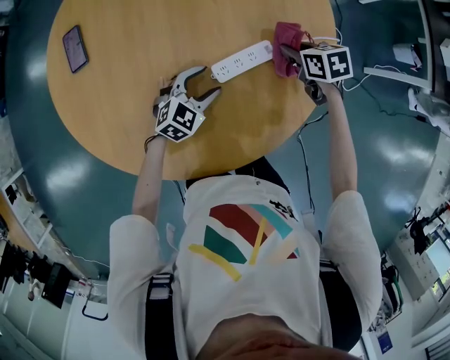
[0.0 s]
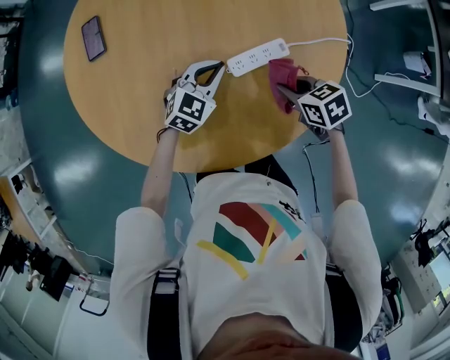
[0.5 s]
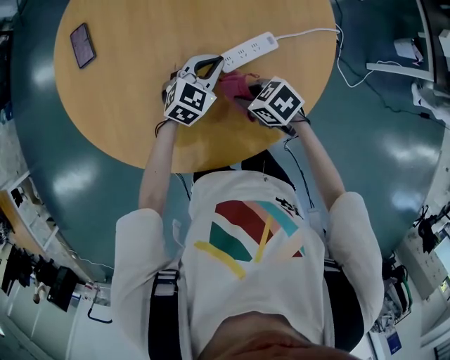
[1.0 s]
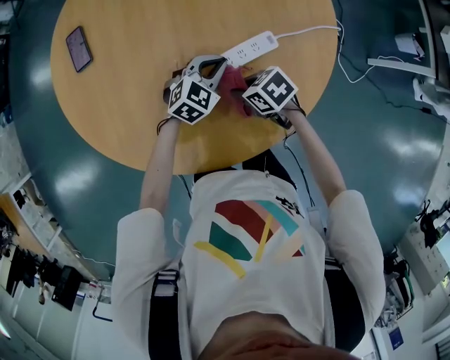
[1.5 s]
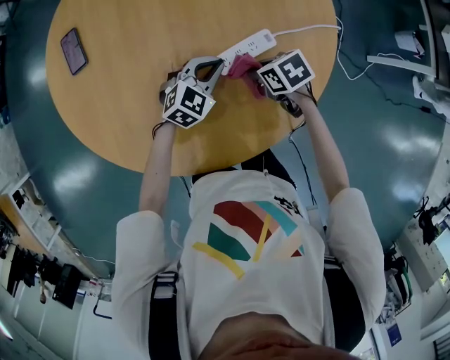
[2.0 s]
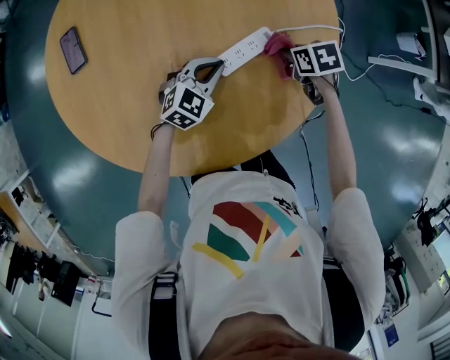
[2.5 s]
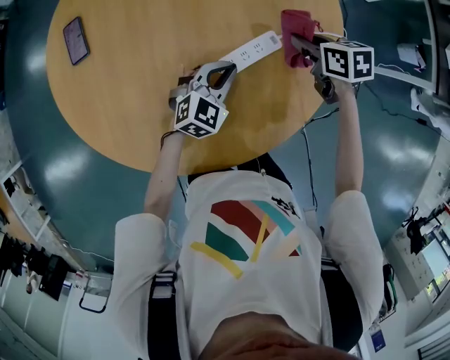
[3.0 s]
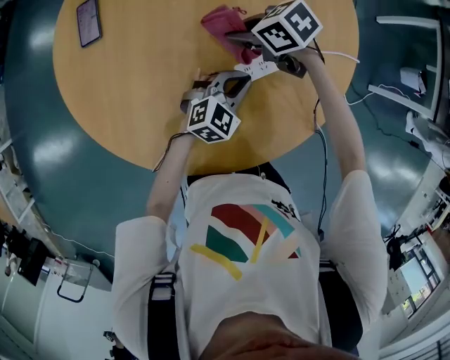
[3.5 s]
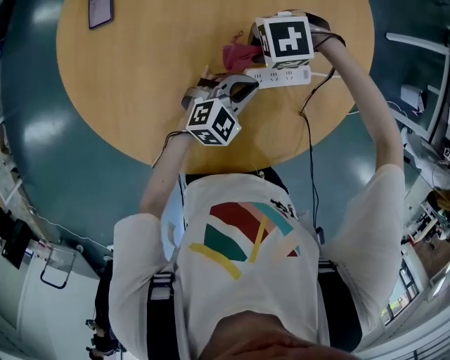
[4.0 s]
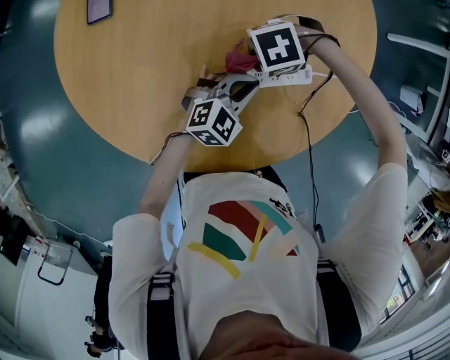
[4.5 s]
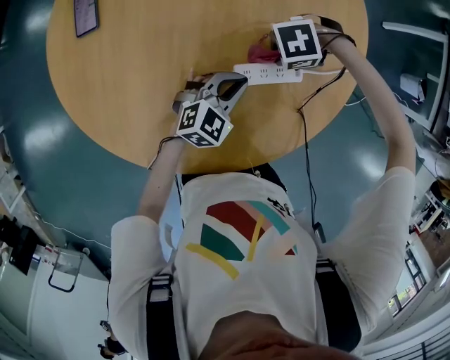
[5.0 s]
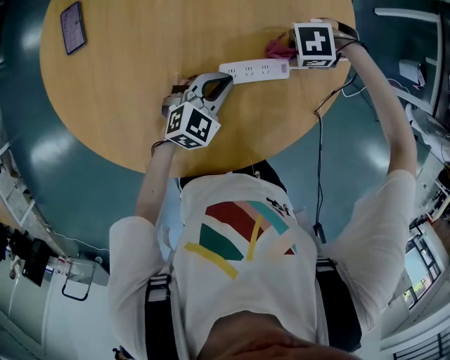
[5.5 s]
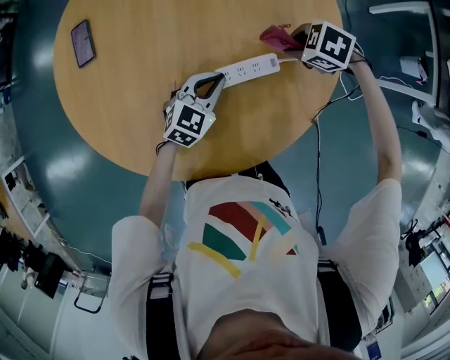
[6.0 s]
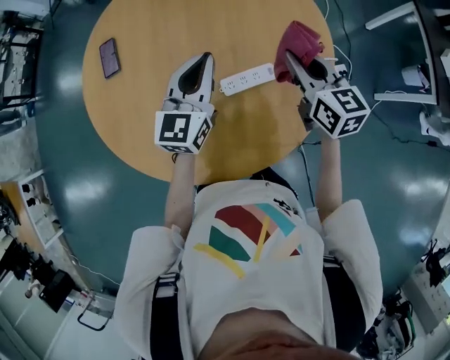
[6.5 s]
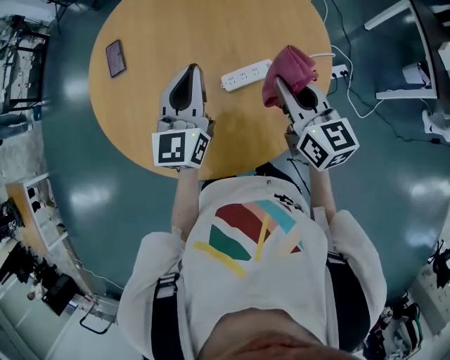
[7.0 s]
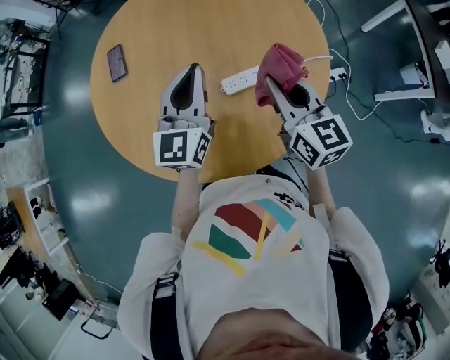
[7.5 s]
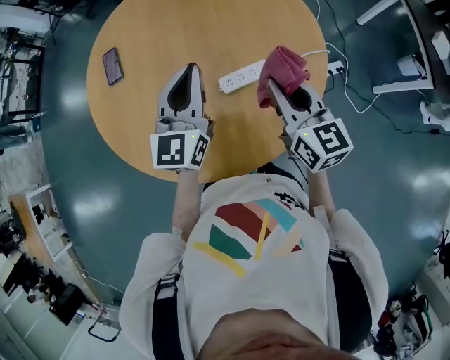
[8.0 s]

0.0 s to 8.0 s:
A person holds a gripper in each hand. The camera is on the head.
0.0 to 2.0 s: The left gripper closes its fingers.
2.0 to 4.0 s: The right gripper moves about 15 cm, and rotates around the line of its fingers by about 80 degrees, counterclockwise from behind.
4.0 to 6.0 s: The right gripper shifts by approximately 20 cm, and swivels some 40 degrees.
6.0 to 8.0 s: The two grippers go approximately 25 cm upward. The right gripper angles its fingers upward, by some 60 degrees, while the left gripper tips its fingers upward by about 30 degrees.

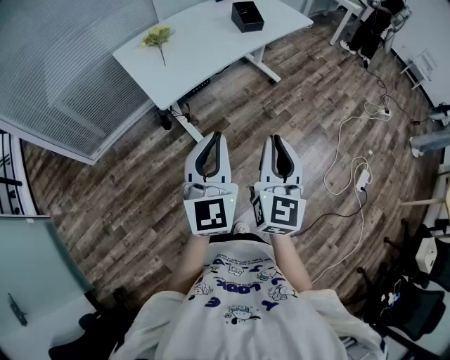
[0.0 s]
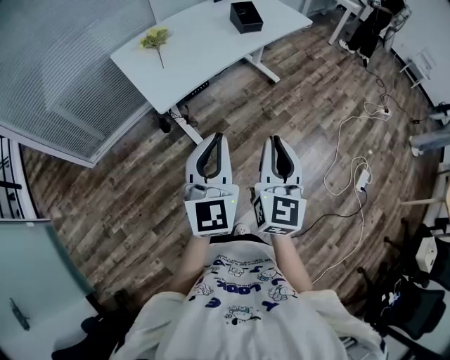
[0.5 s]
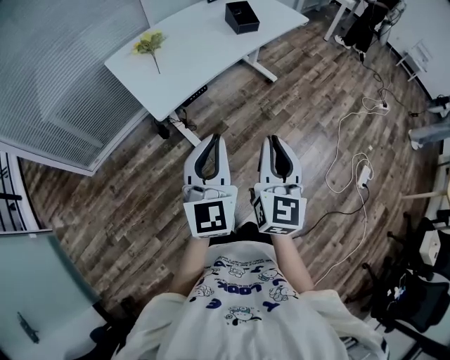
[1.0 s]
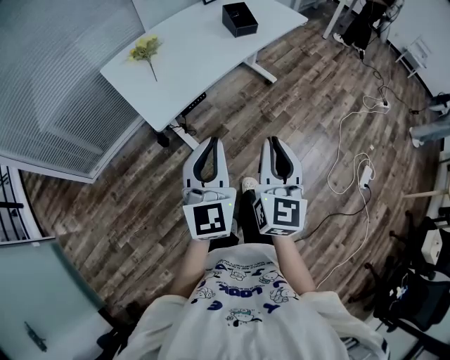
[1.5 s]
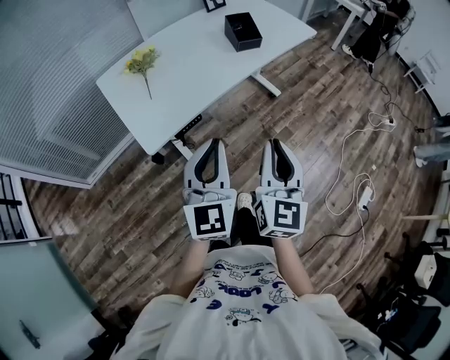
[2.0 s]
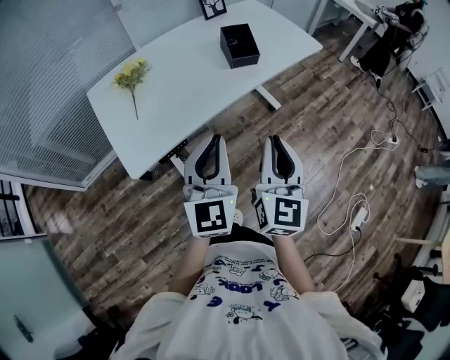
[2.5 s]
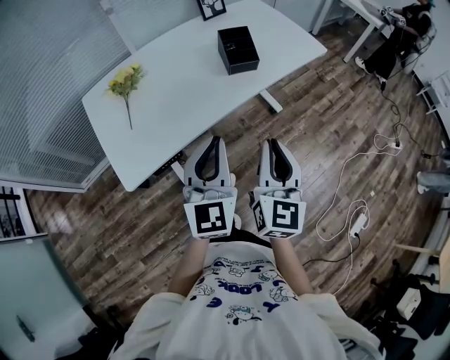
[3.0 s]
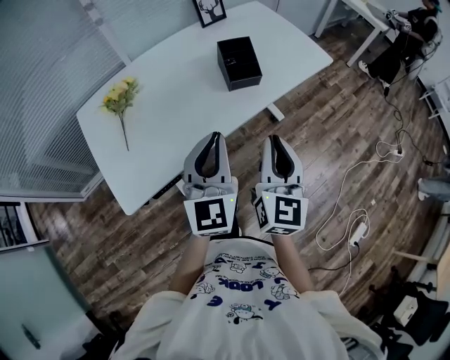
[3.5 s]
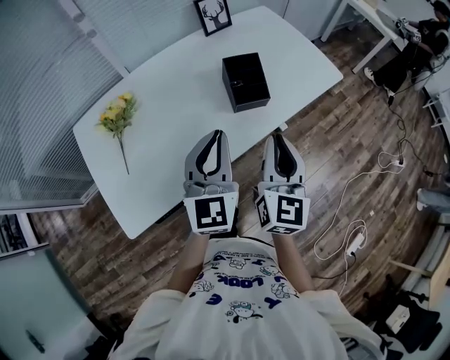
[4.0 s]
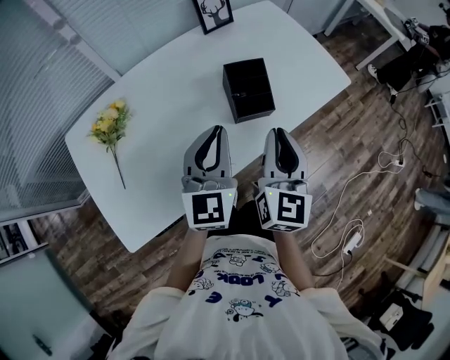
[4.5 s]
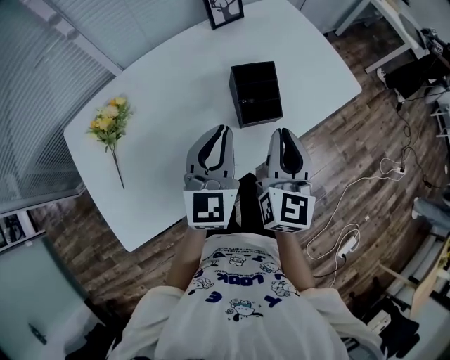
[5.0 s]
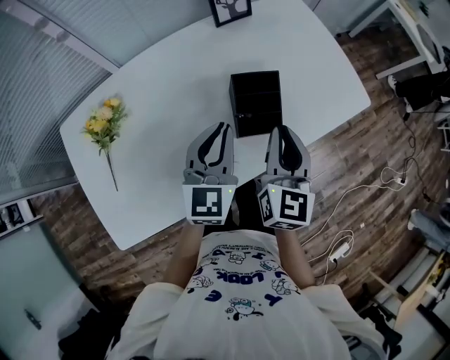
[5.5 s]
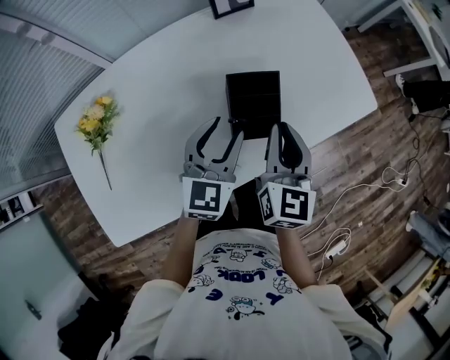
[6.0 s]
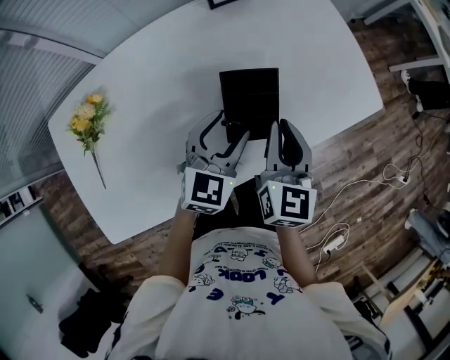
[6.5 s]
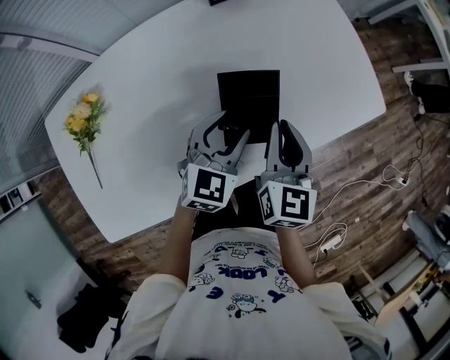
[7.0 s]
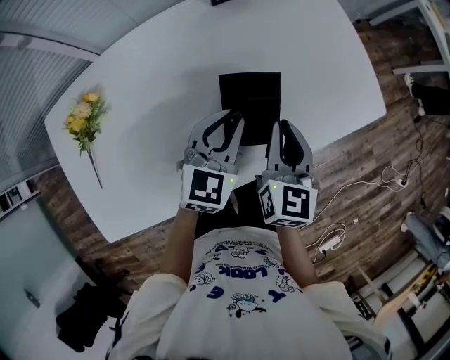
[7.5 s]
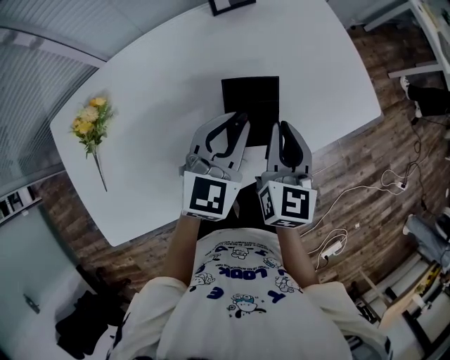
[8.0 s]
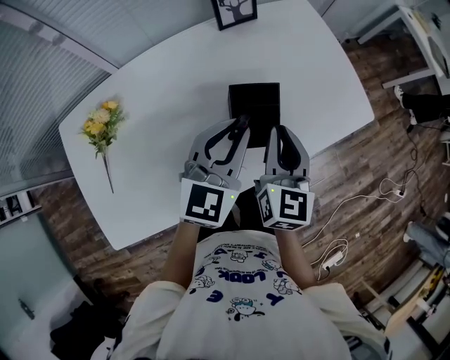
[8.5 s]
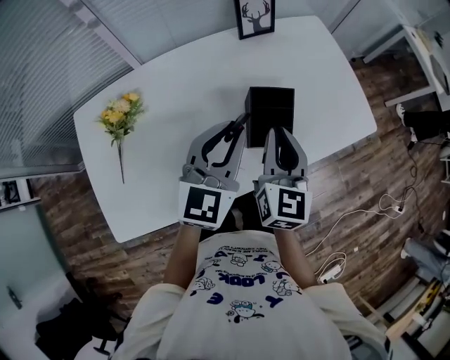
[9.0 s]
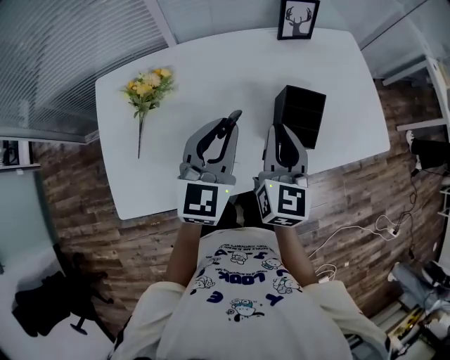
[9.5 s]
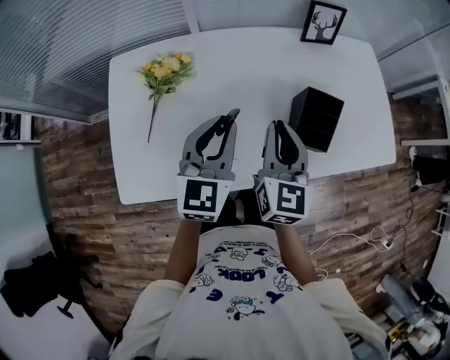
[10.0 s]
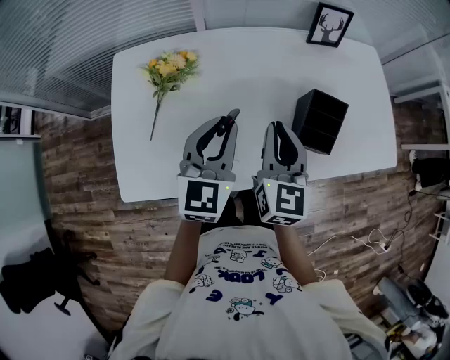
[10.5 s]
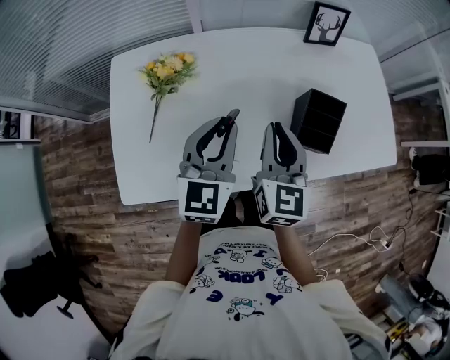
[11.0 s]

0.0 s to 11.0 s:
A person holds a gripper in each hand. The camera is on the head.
0.0 to 2.0 s: The two grippers go about 20 cm forward.
2.0 to 3.5 s: Both grippers travel together forward, roughly 30 cm.
3.5 to 5.5 s: The two grippers go about 30 cm forward.
5.5 to 7.5 s: The left gripper is displaced forward, downward and to the right by roughly 10 cm, and opens, then closes again, while the right gripper shifts about 10 cm forward and downward.
7.5 to 9.0 s: The left gripper travels upward, backward and to the left by approximately 15 cm; the right gripper is displaced upward, to the left and backward by approximately 15 cm.
9.0 to 11.0 s: Both grippers move to the left, approximately 15 cm. The left gripper changes its angle by some 20 degrees.

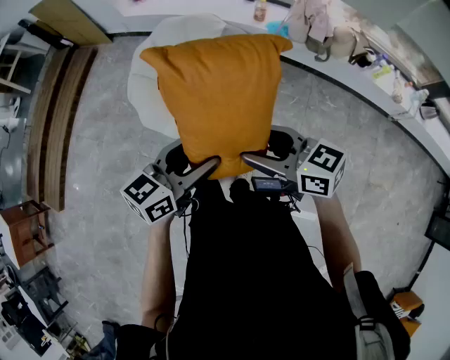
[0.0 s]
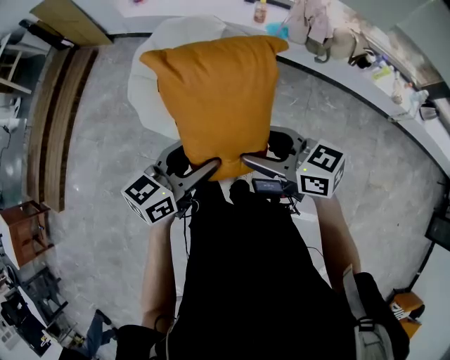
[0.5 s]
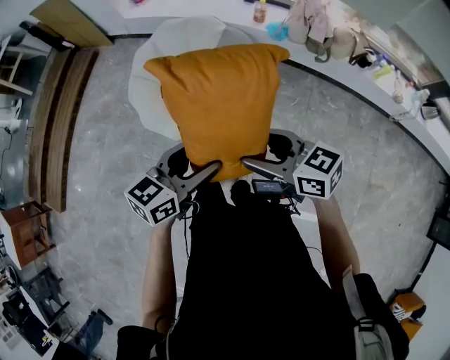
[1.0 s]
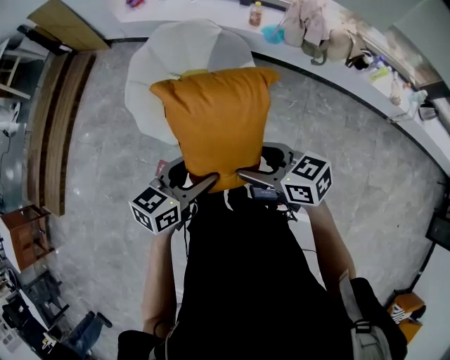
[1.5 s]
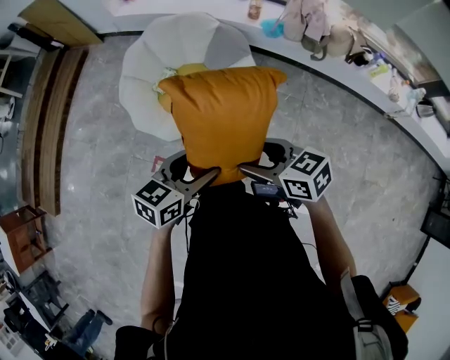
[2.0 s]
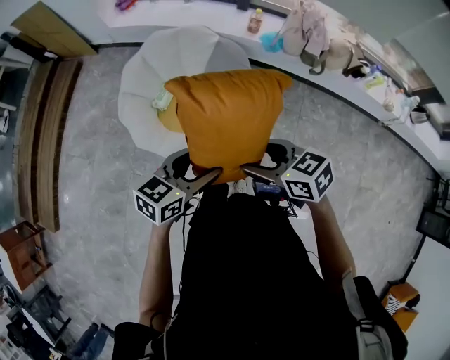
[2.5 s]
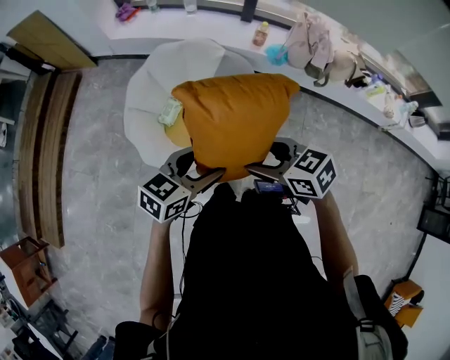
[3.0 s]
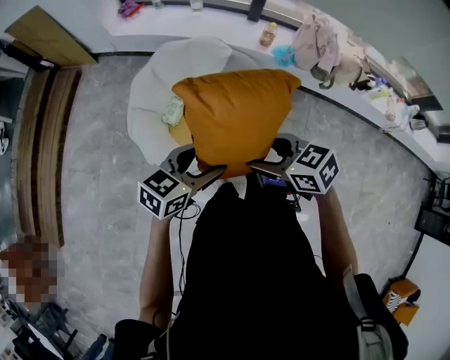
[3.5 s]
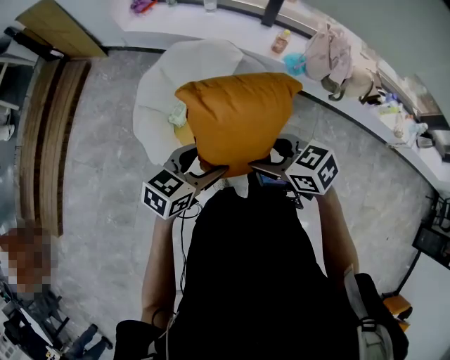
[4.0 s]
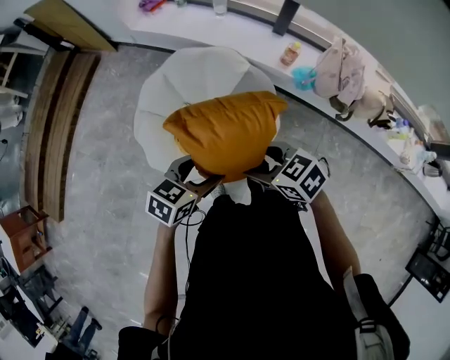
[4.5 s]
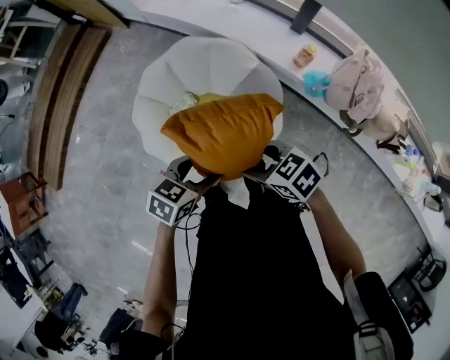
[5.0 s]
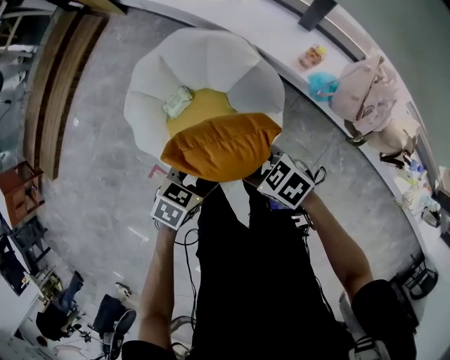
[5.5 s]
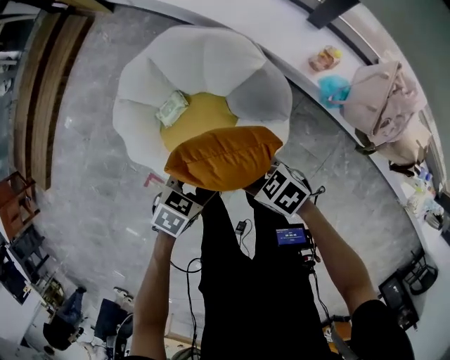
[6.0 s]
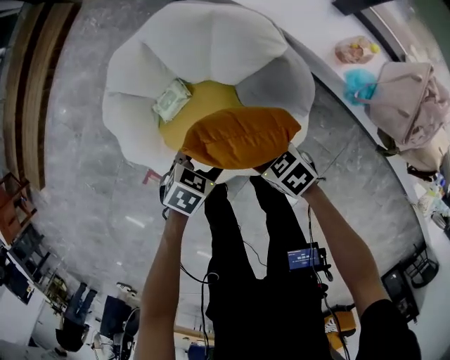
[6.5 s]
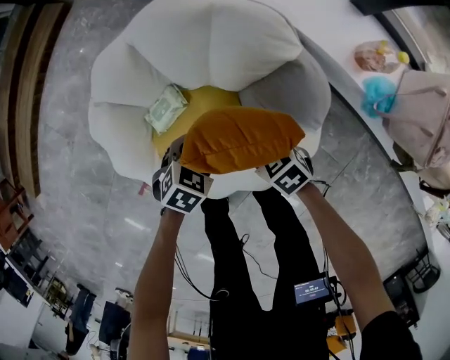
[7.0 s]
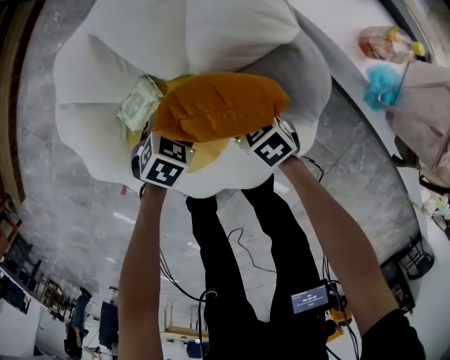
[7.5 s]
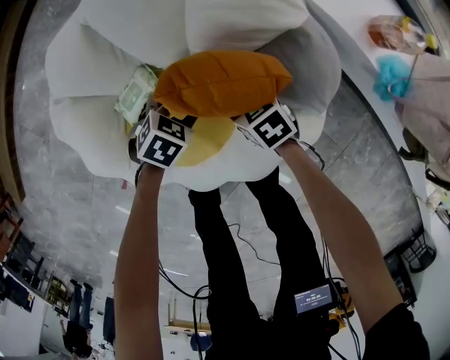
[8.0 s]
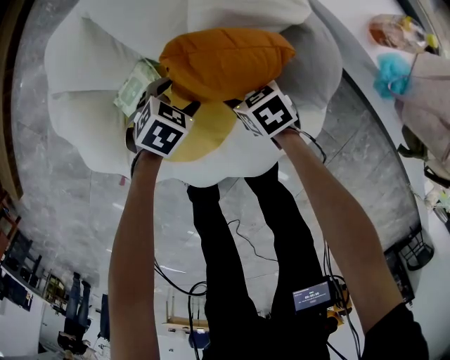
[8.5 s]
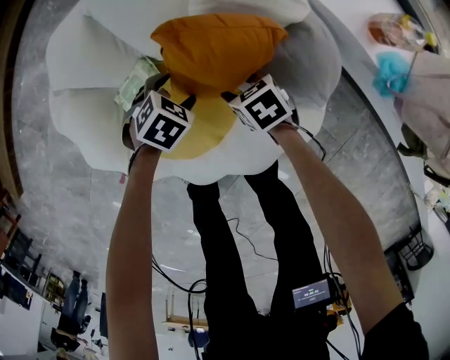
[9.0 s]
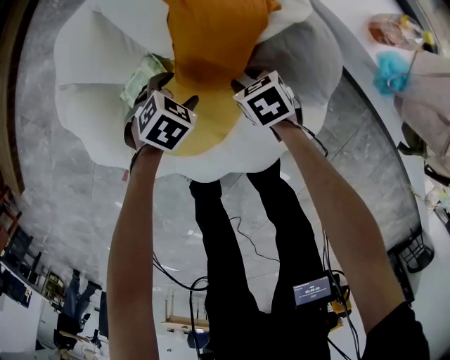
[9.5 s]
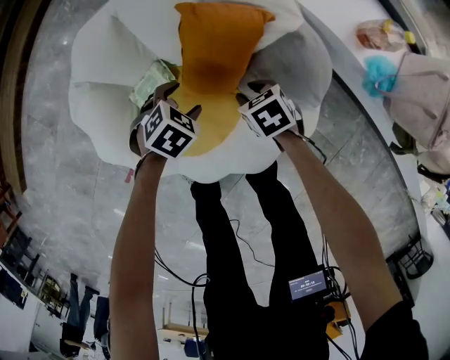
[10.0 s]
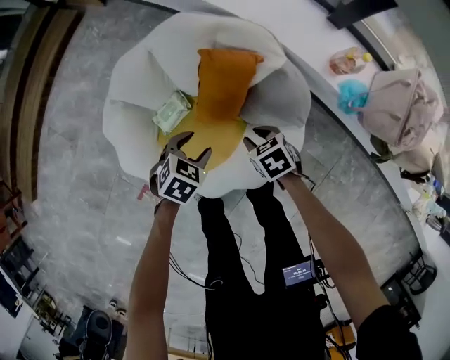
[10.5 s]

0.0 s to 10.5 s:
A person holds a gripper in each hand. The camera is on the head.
0.0 to 2.0 s: Both grippers move downward, about 5 cm.
2.0 to 4.0 s: The left gripper shifts by roughly 25 cm, while the right gripper changes place by about 25 cm.
4.0 to 6.5 s: Both grippers move downward, approximately 40 cm. The right gripper turns by roughly 30 degrees. The left gripper angles its fingers downward, by some 30 degrees.
6.5 to 8.5 s: The grippers both shift downward by about 25 cm.
8.5 to 10.5 s: The grippers both shift upward by some 20 cm. The right gripper closes.
